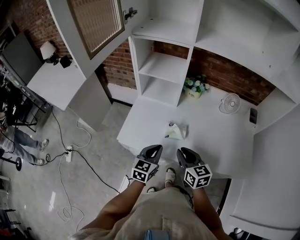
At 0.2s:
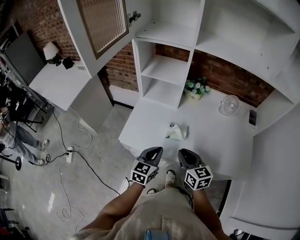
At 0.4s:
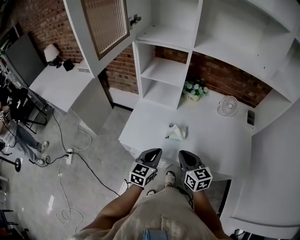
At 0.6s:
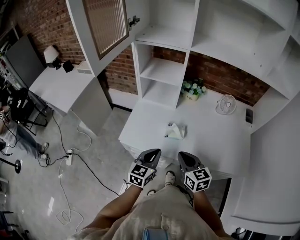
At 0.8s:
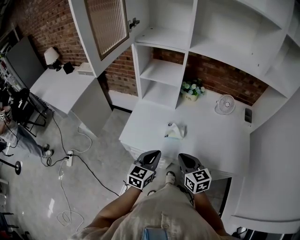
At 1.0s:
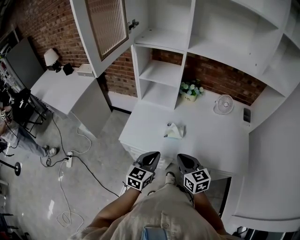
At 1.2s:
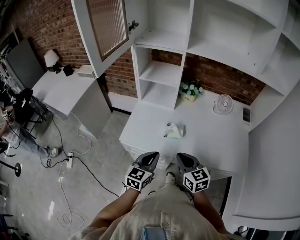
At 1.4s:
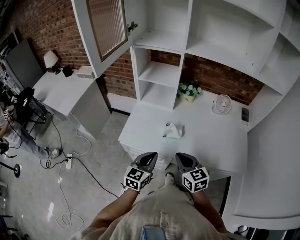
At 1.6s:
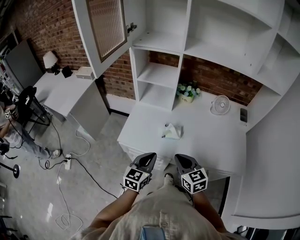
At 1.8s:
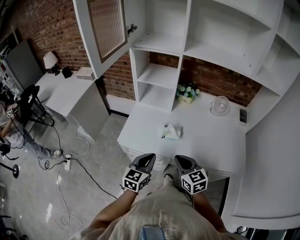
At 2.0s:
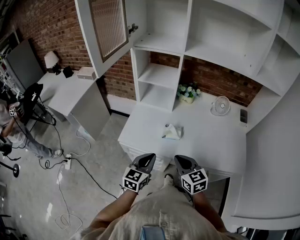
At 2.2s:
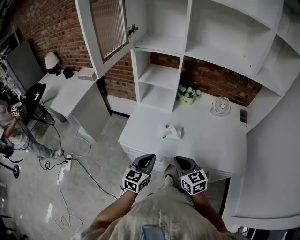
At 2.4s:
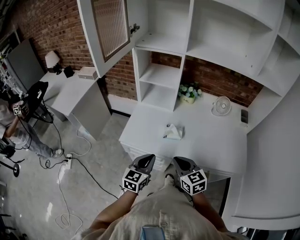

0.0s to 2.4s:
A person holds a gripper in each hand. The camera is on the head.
0.0s to 1.2s: The two grippers go some 10 cm backward.
1.2s to 2.4s: There are only small adjustments of the grippers.

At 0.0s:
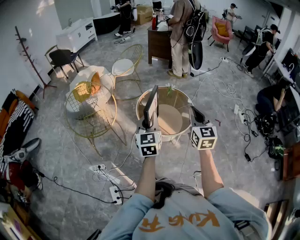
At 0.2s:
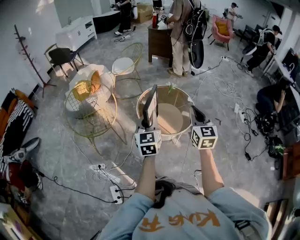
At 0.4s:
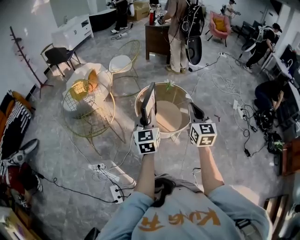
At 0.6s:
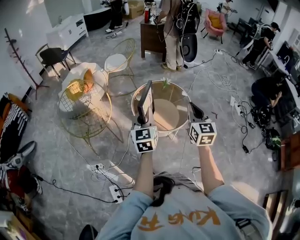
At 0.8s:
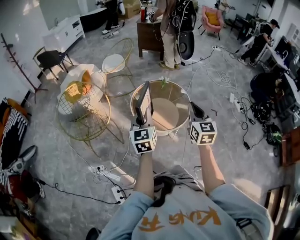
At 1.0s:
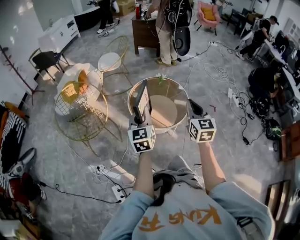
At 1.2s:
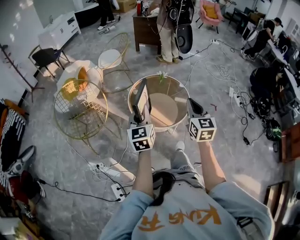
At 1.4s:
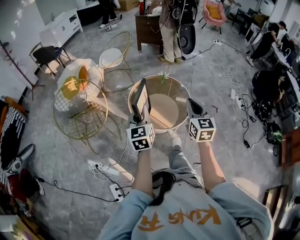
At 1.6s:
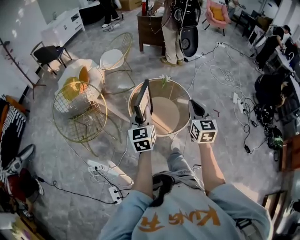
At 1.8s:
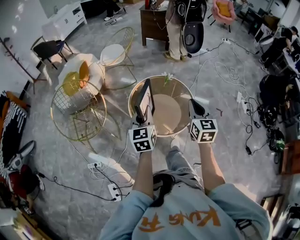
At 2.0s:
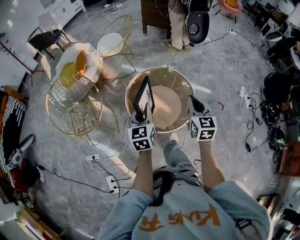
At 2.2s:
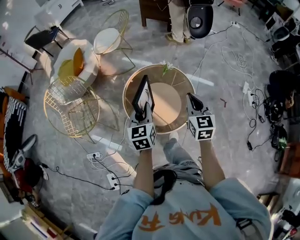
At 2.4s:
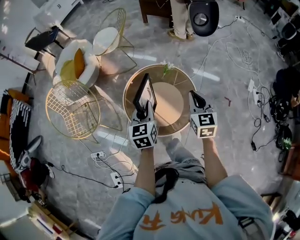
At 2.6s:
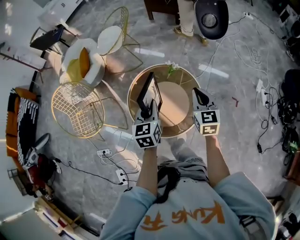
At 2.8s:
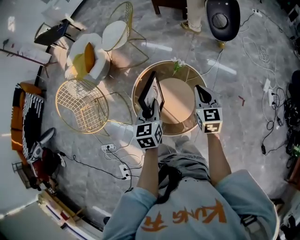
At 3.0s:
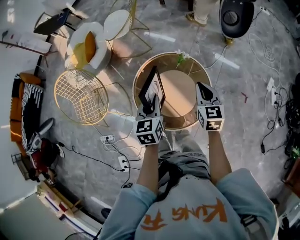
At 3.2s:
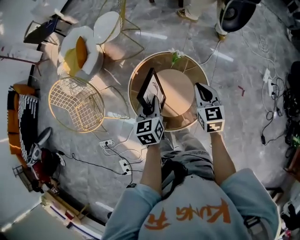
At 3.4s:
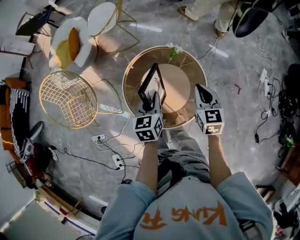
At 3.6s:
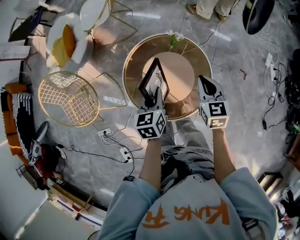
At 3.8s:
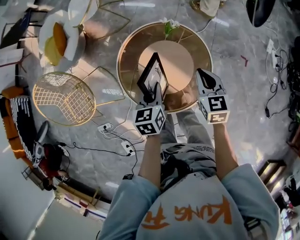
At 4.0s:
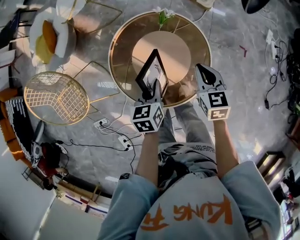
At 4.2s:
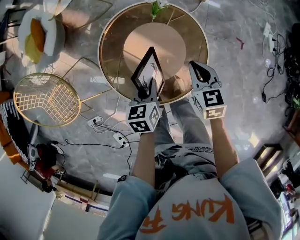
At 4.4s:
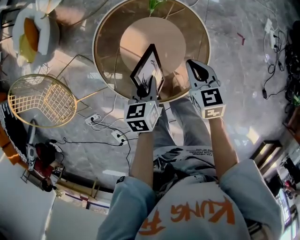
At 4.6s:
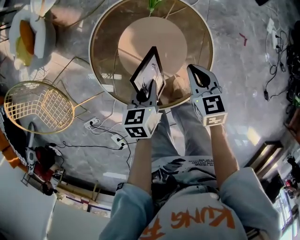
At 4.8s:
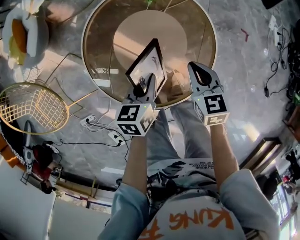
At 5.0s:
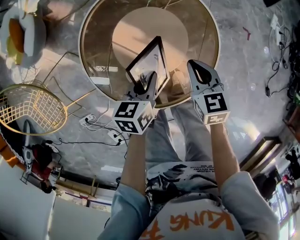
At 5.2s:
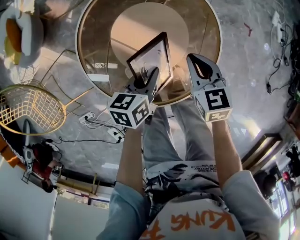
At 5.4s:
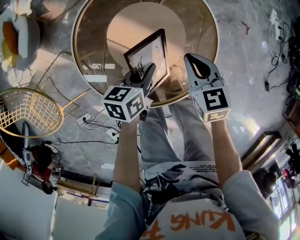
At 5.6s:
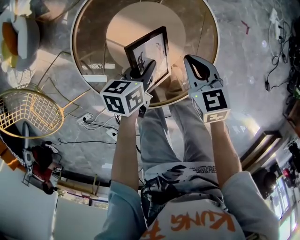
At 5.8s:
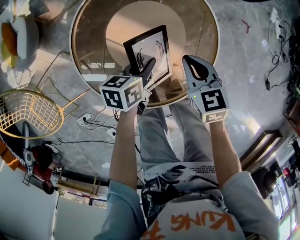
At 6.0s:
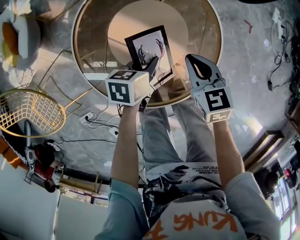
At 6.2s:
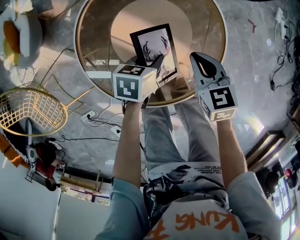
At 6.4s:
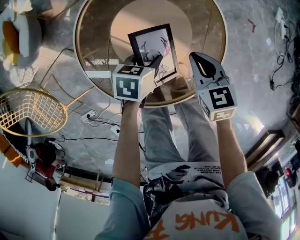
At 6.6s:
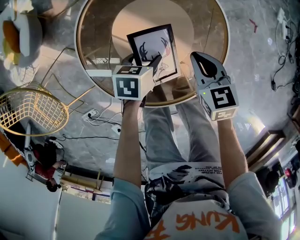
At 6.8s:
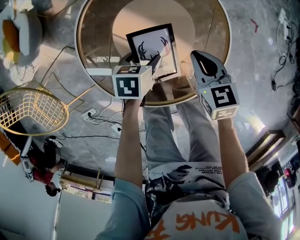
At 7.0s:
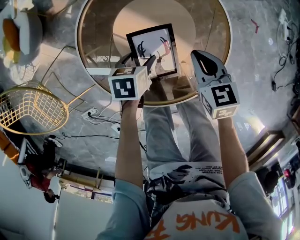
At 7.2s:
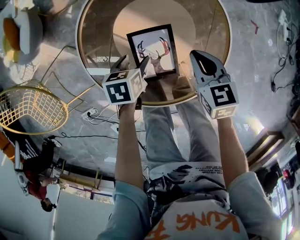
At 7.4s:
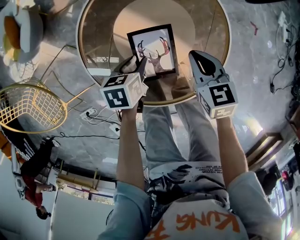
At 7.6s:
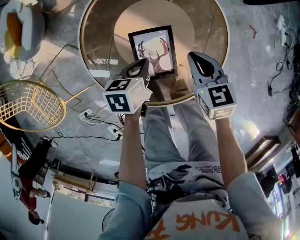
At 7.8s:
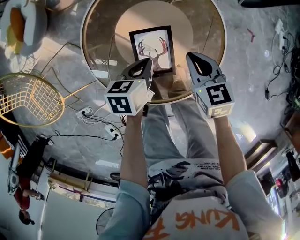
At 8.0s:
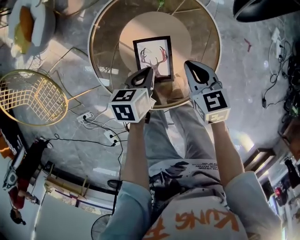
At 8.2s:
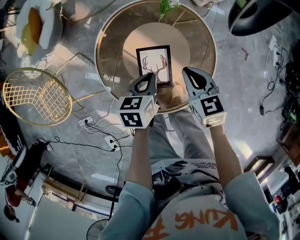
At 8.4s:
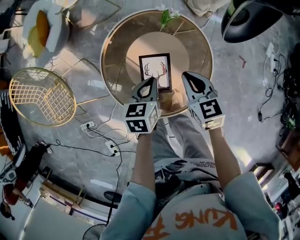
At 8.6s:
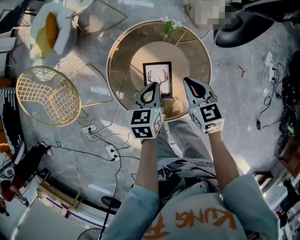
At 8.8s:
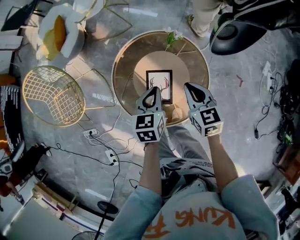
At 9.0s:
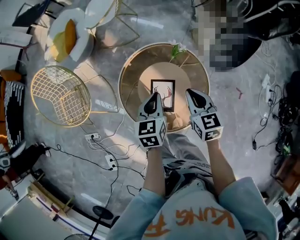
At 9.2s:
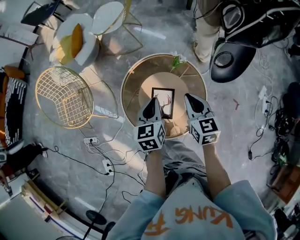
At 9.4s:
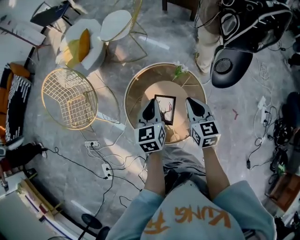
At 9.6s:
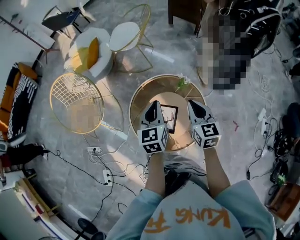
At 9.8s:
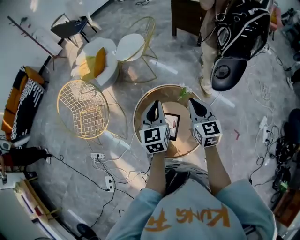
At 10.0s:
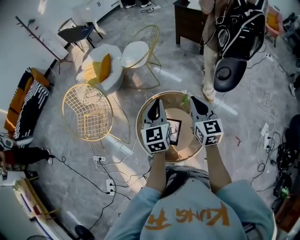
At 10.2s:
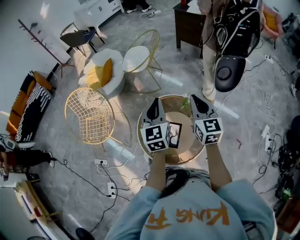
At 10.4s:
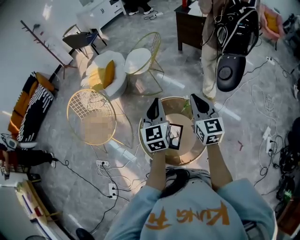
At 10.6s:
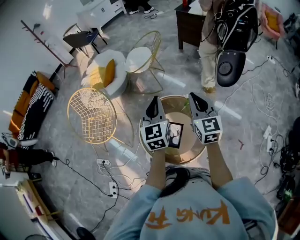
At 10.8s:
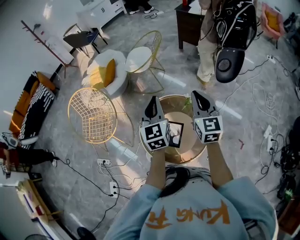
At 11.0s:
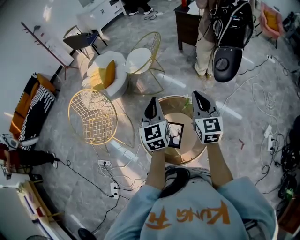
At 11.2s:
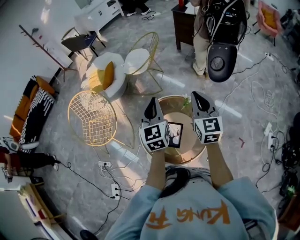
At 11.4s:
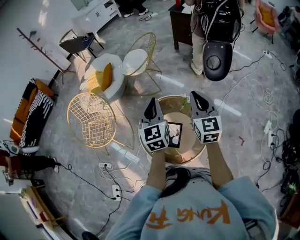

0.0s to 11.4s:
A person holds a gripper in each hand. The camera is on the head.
0.0s to 1.4s: The grippers both shift forward and downward by about 10 cm.
1.4s to 2.8s: Both grippers move forward and to the right, approximately 35 cm.
2.8s to 4.2s: The two grippers go about 20 cm downward. The left gripper changes its angle by roughly 30 degrees.
4.2s to 5.6s: The two grippers go approximately 15 cm downward. The left gripper changes its angle by approximately 30 degrees.
5.6s to 7.2s: The left gripper is displaced to the left and downward by about 10 cm, changes its angle by some 20 degrees, and opens up.
7.2s to 8.6s: The grippers both shift upward by roughly 20 cm. The left gripper swivels approximately 30 degrees, and closes.
8.6s to 10.0s: The grippers both shift upward by roughly 30 cm. The left gripper changes its angle by about 40 degrees. Meanwhile the right gripper turns by about 30 degrees.
10.0s to 11.4s: The right gripper is displaced upward by roughly 5 cm.

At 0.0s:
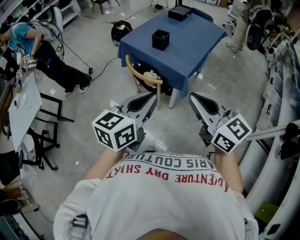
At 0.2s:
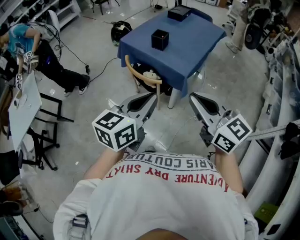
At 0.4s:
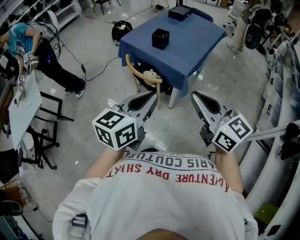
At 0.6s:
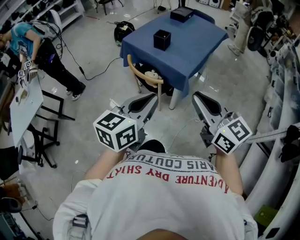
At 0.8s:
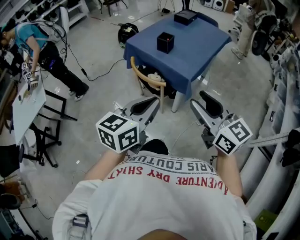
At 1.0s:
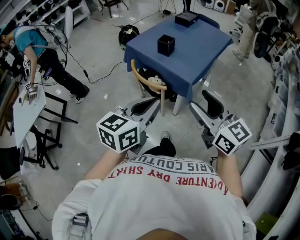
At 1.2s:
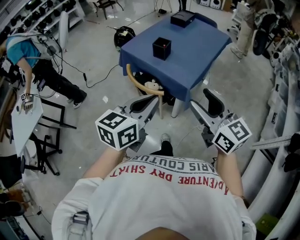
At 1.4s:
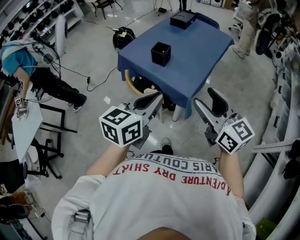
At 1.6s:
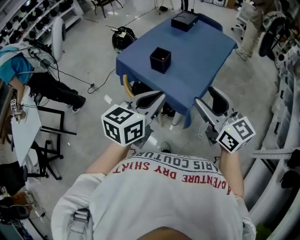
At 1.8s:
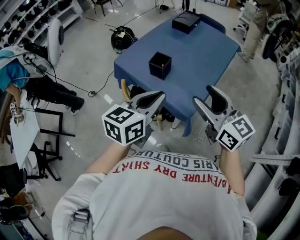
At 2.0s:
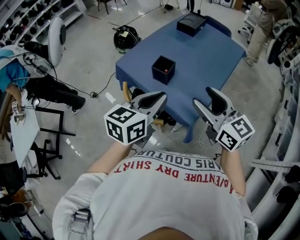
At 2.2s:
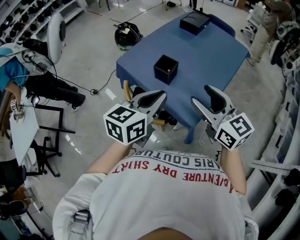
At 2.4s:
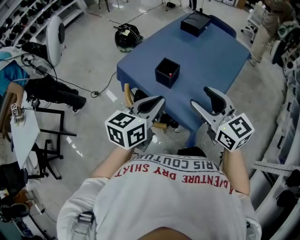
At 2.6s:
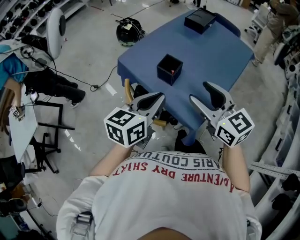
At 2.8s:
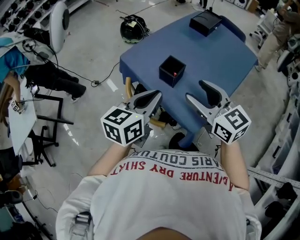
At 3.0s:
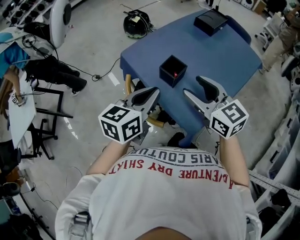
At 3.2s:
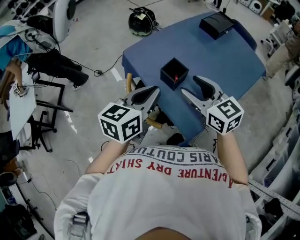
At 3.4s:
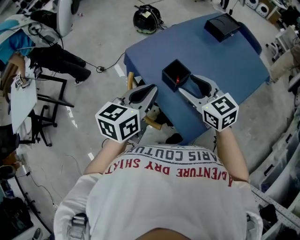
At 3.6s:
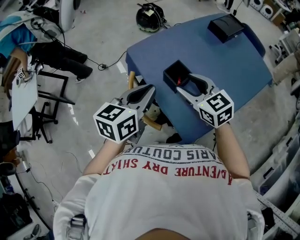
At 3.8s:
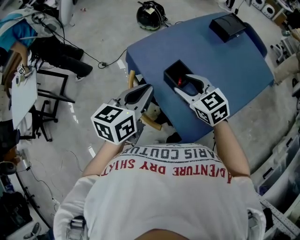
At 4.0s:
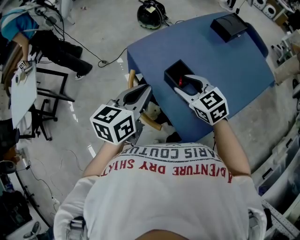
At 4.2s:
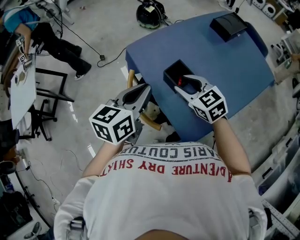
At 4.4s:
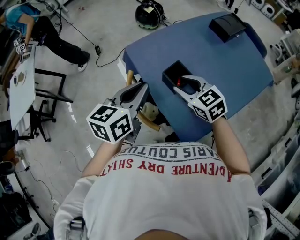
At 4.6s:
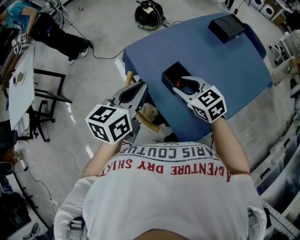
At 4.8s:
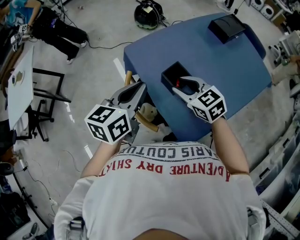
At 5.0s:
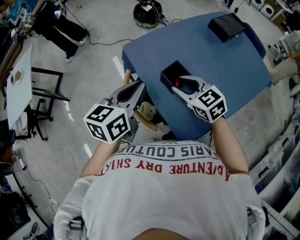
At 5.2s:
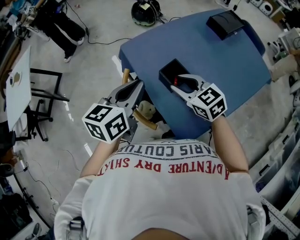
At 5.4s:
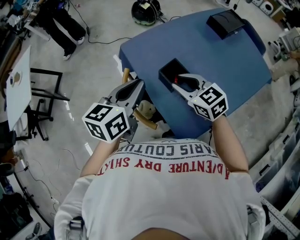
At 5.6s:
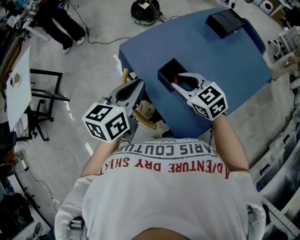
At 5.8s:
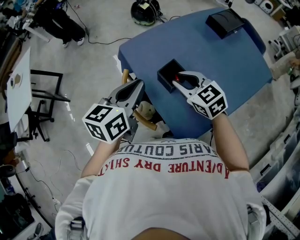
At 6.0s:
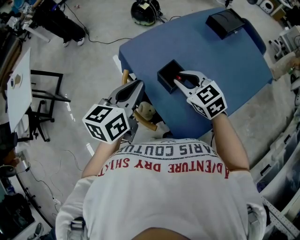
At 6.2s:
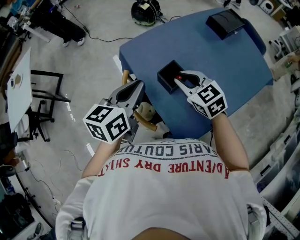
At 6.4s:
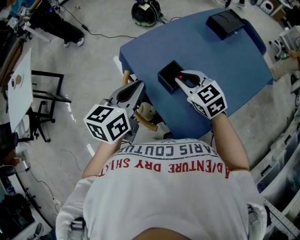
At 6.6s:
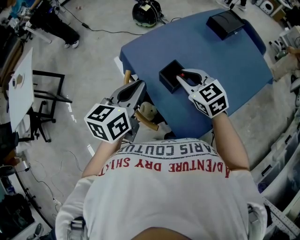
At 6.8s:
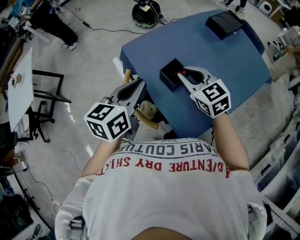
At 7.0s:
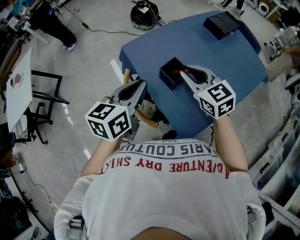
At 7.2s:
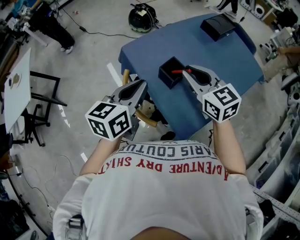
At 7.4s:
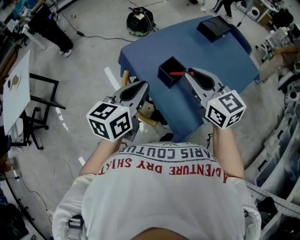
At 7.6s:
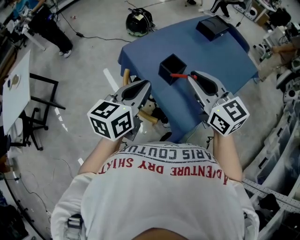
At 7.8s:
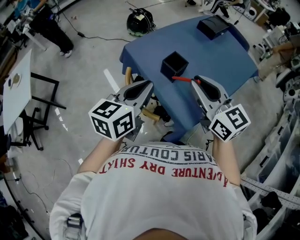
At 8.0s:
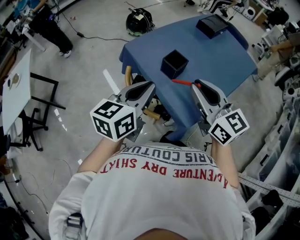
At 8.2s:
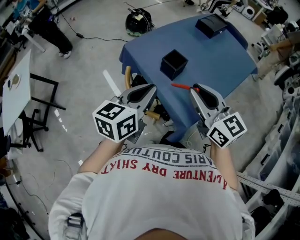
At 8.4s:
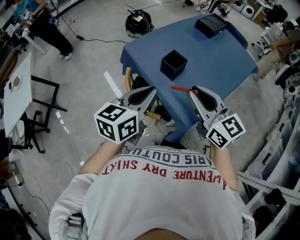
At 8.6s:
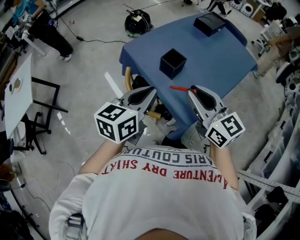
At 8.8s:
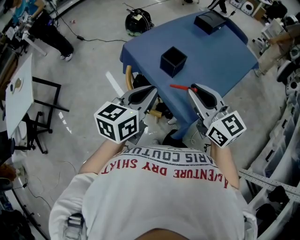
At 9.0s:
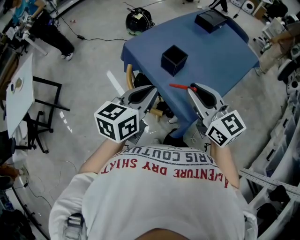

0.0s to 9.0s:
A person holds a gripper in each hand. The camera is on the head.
0.0s to 1.6s: Both grippers move forward, approximately 20 cm. The right gripper opens up.
1.6s to 3.0s: The right gripper goes about 20 cm forward, and swivels roughly 20 degrees. The left gripper travels forward and downward by approximately 15 cm.
3.0s to 4.4s: The left gripper travels forward by about 5 cm. Meanwhile the right gripper travels downward and forward by roughly 15 cm, swivels about 20 degrees, and closes its fingers.
4.4s to 6.0s: The grippers stay close to where they were, moving slightly.
6.0s to 7.6s: The left gripper goes about 10 cm backward, while the right gripper shifts some 20 cm upward and backward, and changes its angle by roughly 30 degrees.
7.6s to 9.0s: Both grippers move backward, some 5 cm.

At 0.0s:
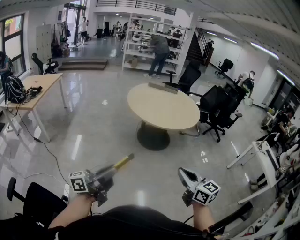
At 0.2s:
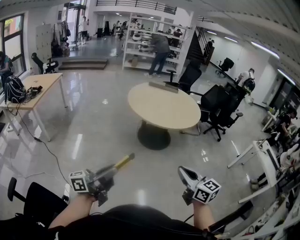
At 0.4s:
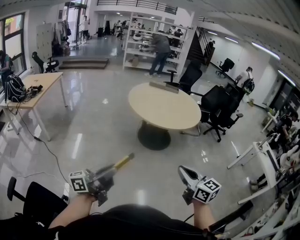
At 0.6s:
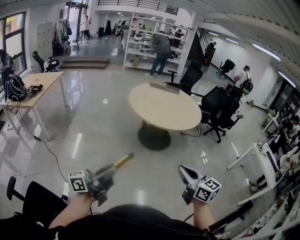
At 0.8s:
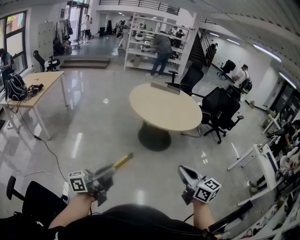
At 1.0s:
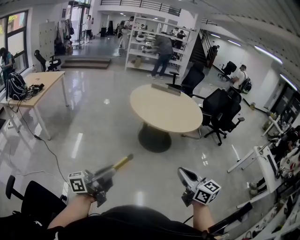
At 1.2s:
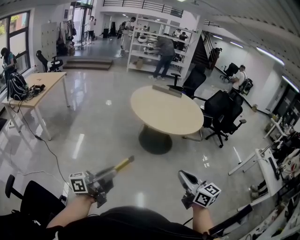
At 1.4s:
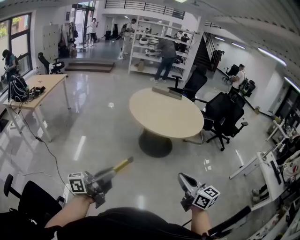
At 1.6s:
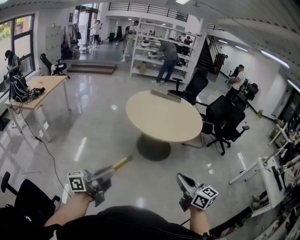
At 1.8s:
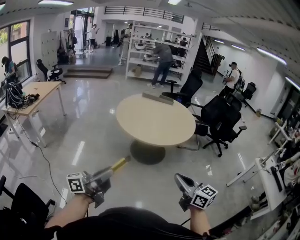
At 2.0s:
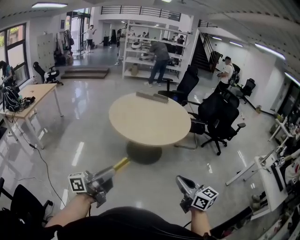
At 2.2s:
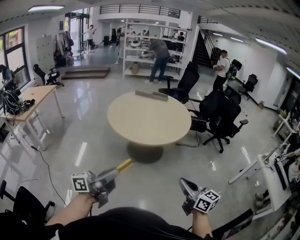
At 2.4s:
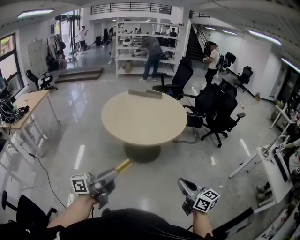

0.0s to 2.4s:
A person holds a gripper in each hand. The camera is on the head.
0.0s to 1.2s: The grippers move only a little.
1.2s to 2.4s: Both grippers travel together to the right and forward, approximately 40 cm.
